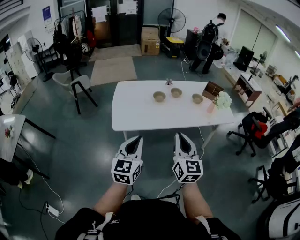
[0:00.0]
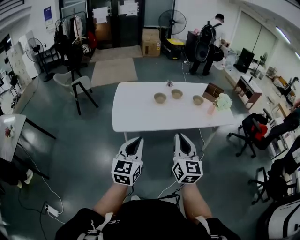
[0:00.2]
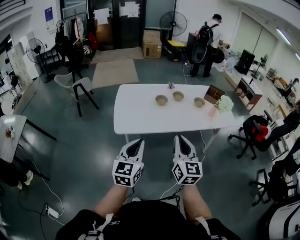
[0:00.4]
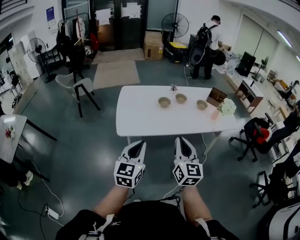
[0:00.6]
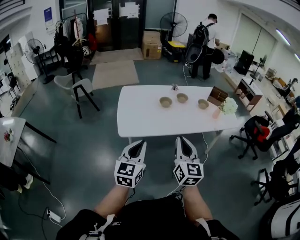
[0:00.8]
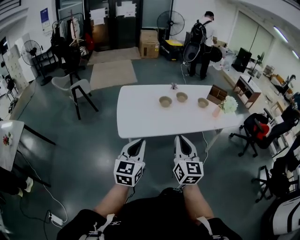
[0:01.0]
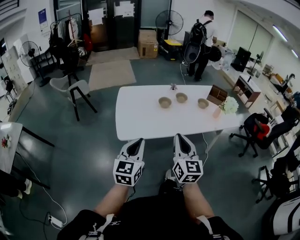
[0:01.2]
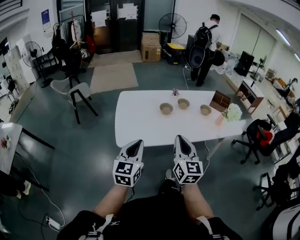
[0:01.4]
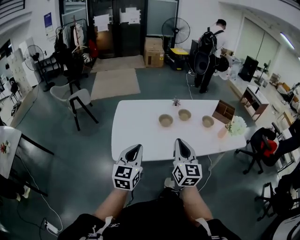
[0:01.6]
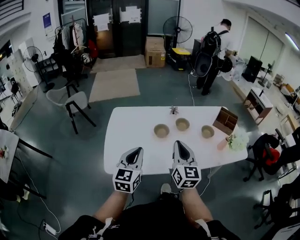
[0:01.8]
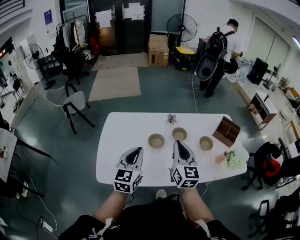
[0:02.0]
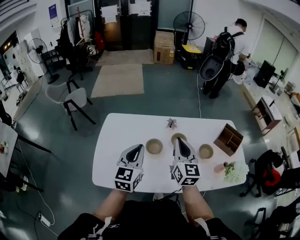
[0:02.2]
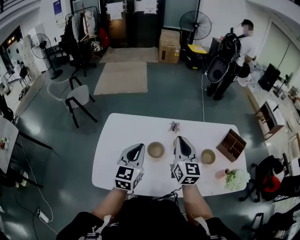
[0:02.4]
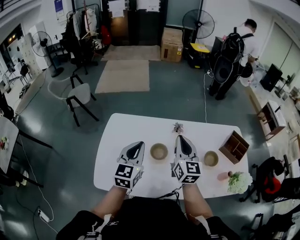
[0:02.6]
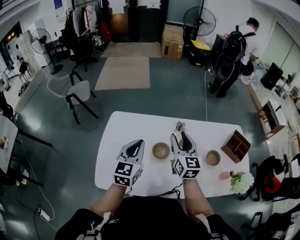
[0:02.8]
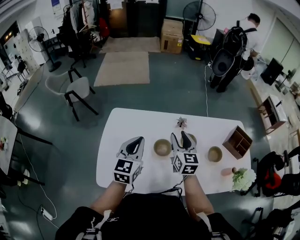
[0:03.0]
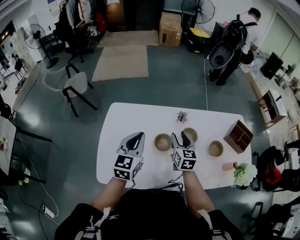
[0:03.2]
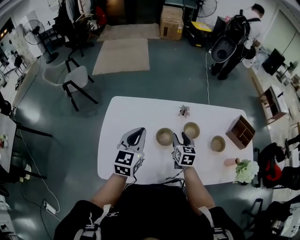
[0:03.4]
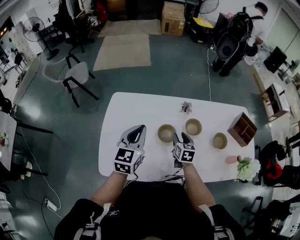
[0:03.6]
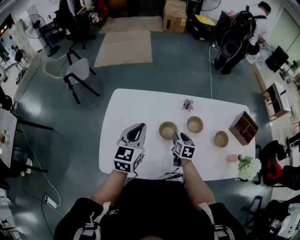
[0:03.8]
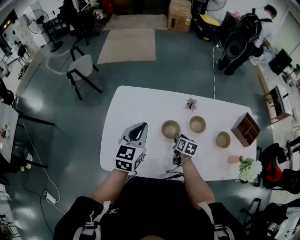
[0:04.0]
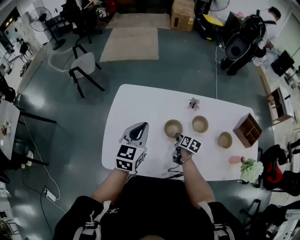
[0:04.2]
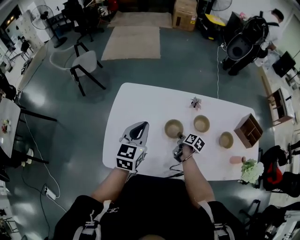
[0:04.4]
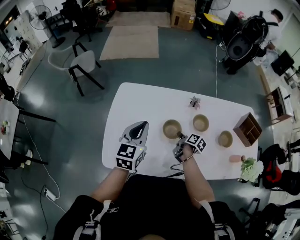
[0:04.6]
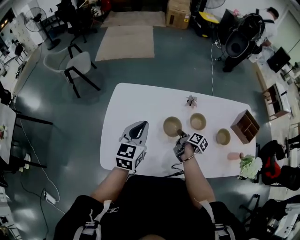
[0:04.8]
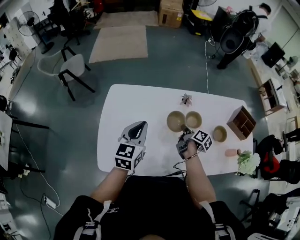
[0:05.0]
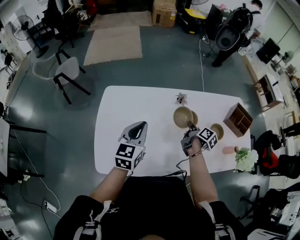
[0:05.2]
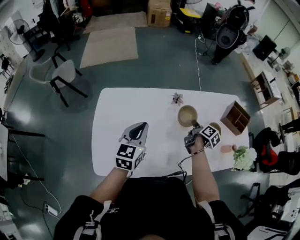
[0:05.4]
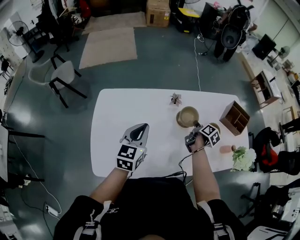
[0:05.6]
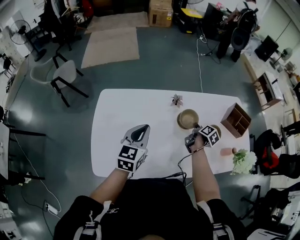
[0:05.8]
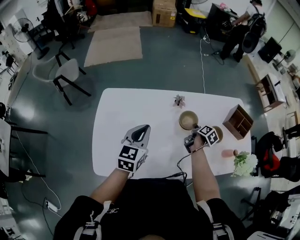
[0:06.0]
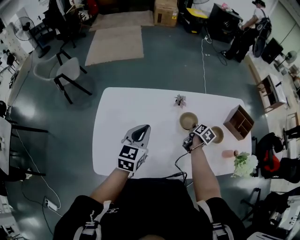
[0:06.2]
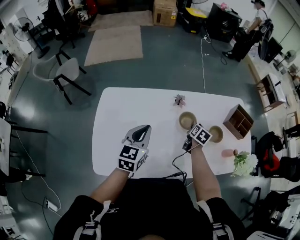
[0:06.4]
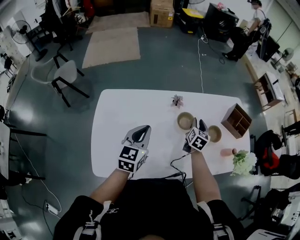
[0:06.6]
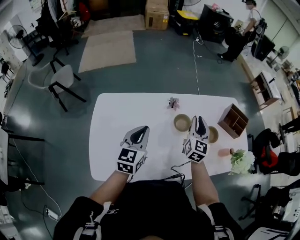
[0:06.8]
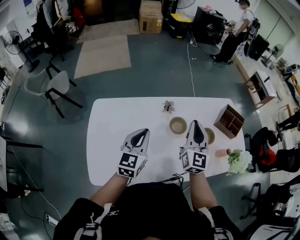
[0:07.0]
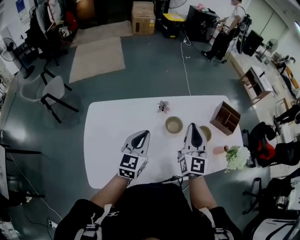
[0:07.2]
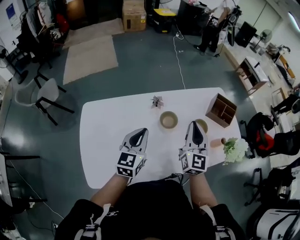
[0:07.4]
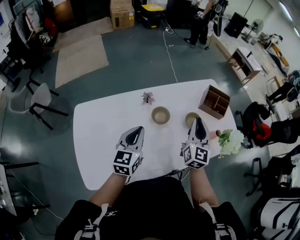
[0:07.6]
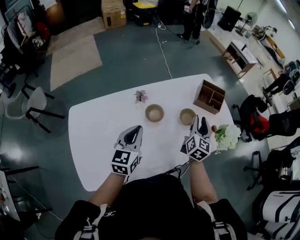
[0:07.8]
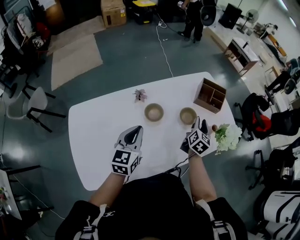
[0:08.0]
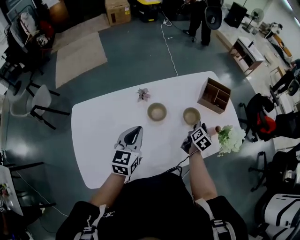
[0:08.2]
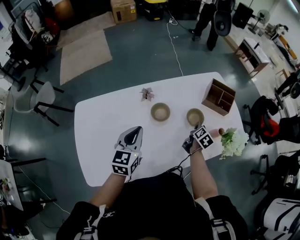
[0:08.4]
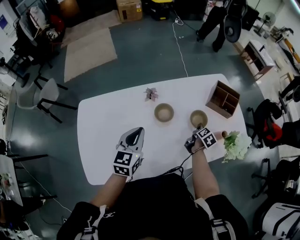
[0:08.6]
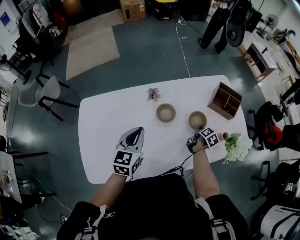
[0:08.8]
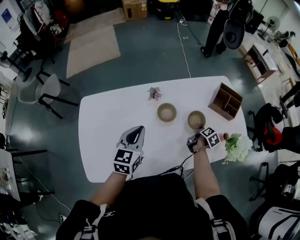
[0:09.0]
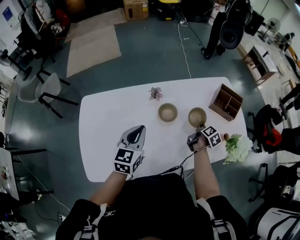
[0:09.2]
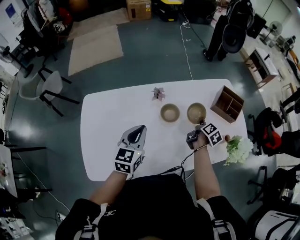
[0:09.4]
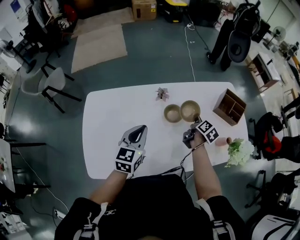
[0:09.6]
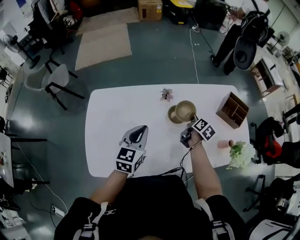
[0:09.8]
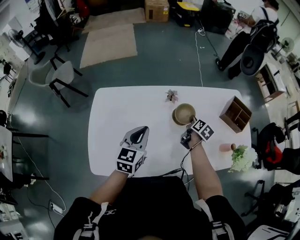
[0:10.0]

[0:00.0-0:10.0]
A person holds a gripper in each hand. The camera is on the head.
0:00.0 to 0:01.4: The two grippers go approximately 15 cm forward and to the left.
0:01.4 to 0:02.8: Both grippers are carried forward, some 50 cm. The right gripper opens up.
0:02.8 to 0:04.2: The right gripper shifts approximately 30 cm downward, and tips its fingers downward by roughly 40 degrees, while the left gripper heads downward, covering approximately 5 cm.
0:04.2 to 0:05.8: The left gripper is displaced to the right by roughly 10 cm. Meanwhile the right gripper goes about 20 cm to the right, and turns by roughly 40 degrees.
0:05.8 to 0:07.2: The right gripper travels upward by about 25 cm, tips its fingers upward by about 40 degrees, and opens, then closes again. Meanwhile the left gripper ends up roughly 5 cm from where it was.
0:07.2 to 0:08.6: The left gripper travels to the right by some 5 cm. Meanwhile the right gripper heads downward and to the right, covering roughly 40 cm, tilts its fingers about 50 degrees downward, and opens up.
0:08.6 to 0:10.0: The left gripper moves to the left, some 5 cm. Meanwhile the right gripper moves to the left, roughly 20 cm, changes its angle by about 30 degrees, and closes up.

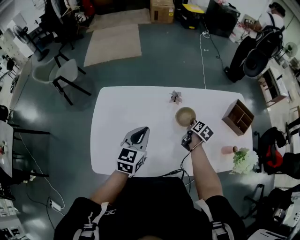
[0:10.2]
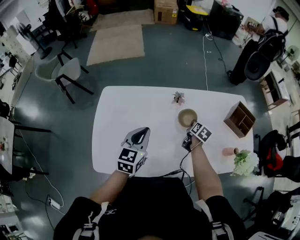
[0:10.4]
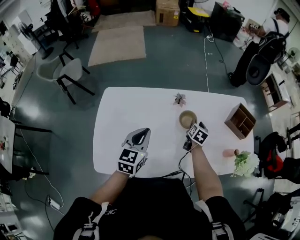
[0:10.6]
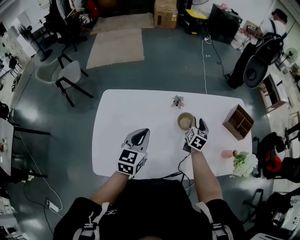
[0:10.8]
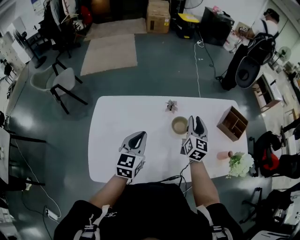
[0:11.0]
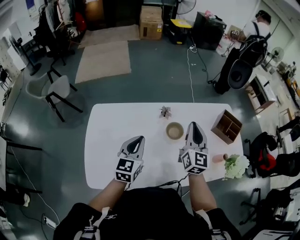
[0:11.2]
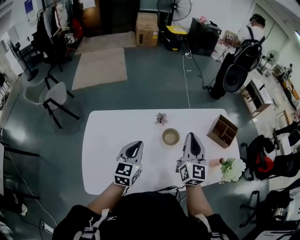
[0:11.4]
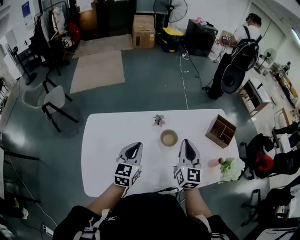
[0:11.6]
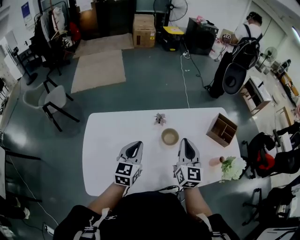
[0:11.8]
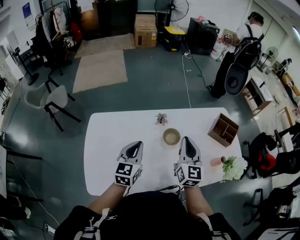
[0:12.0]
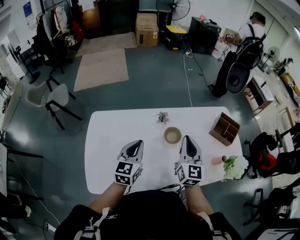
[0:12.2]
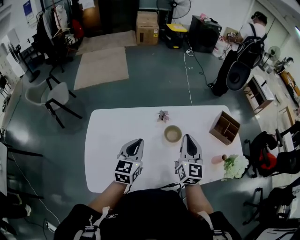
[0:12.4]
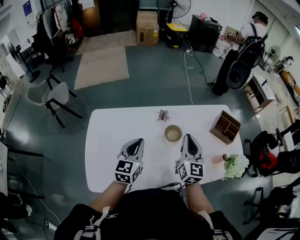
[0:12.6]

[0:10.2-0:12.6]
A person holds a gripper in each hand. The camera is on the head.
0:10.2 to 0:11.4: The right gripper moves upward, some 30 cm, tips its fingers upward by roughly 40 degrees, and opens and closes again.
0:11.4 to 0:12.6: The grippers move only a little.

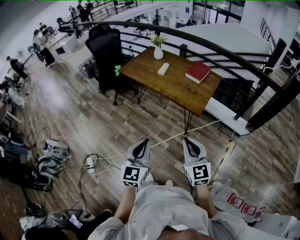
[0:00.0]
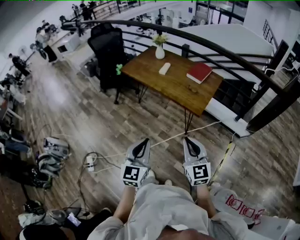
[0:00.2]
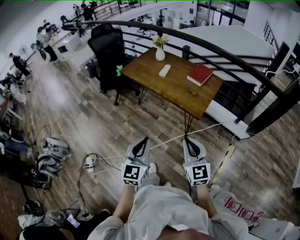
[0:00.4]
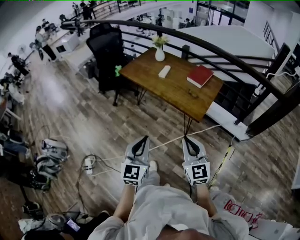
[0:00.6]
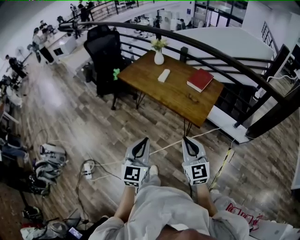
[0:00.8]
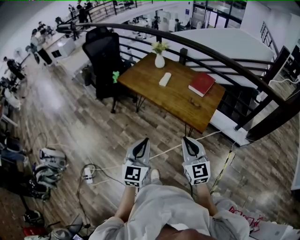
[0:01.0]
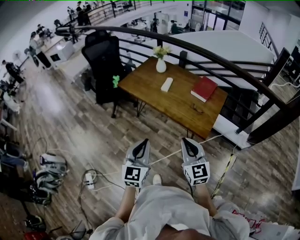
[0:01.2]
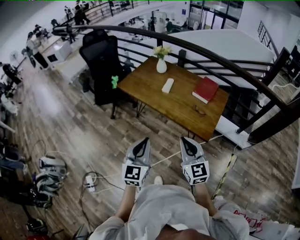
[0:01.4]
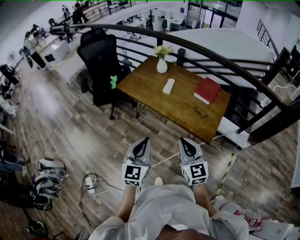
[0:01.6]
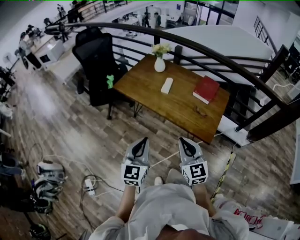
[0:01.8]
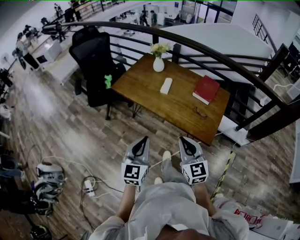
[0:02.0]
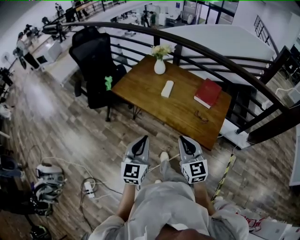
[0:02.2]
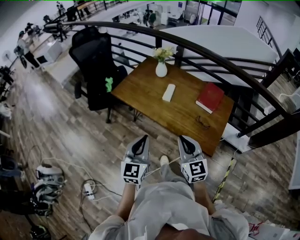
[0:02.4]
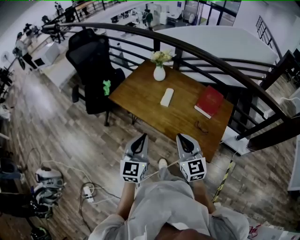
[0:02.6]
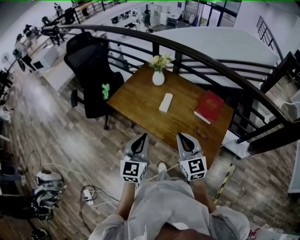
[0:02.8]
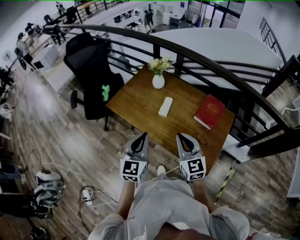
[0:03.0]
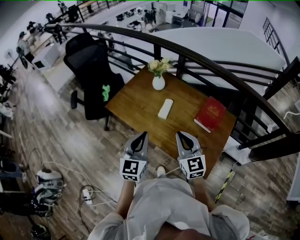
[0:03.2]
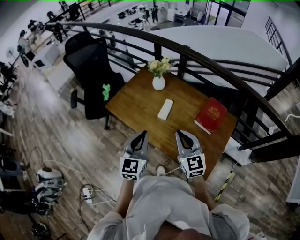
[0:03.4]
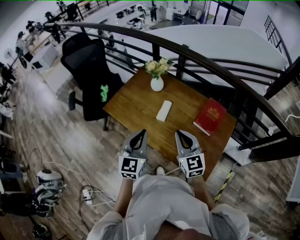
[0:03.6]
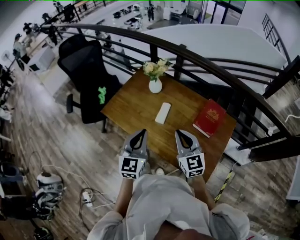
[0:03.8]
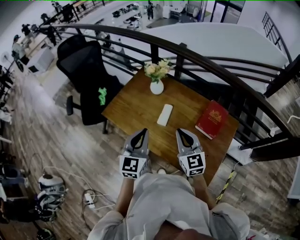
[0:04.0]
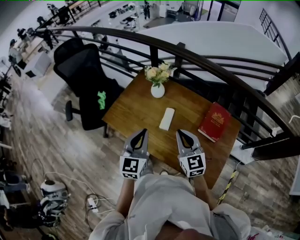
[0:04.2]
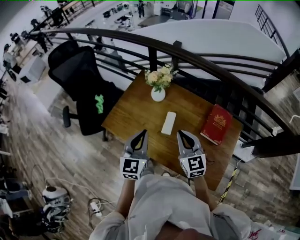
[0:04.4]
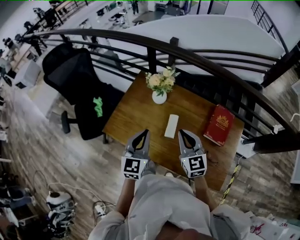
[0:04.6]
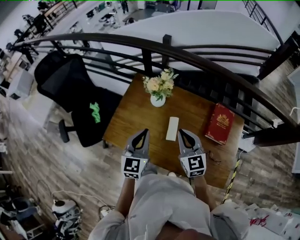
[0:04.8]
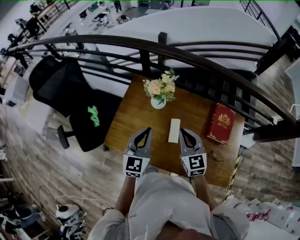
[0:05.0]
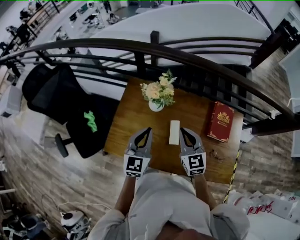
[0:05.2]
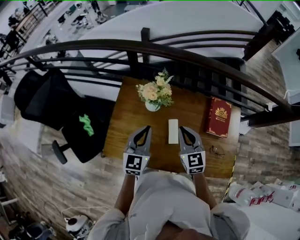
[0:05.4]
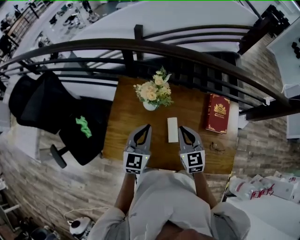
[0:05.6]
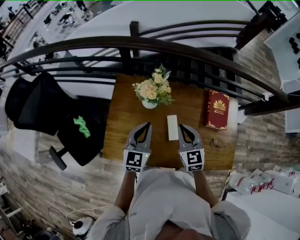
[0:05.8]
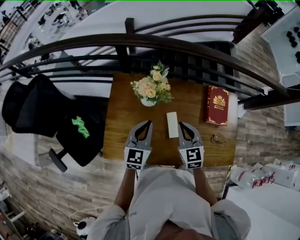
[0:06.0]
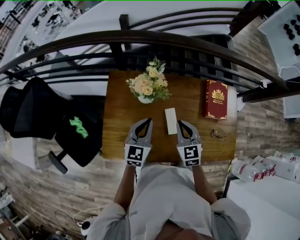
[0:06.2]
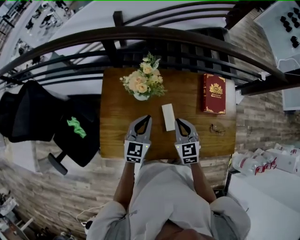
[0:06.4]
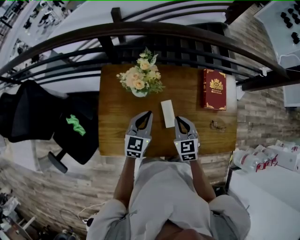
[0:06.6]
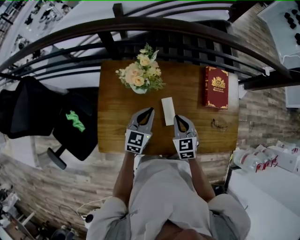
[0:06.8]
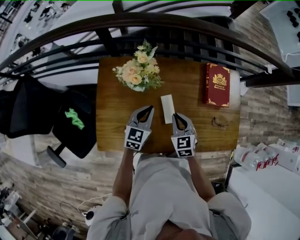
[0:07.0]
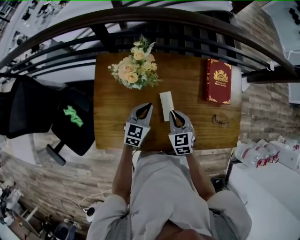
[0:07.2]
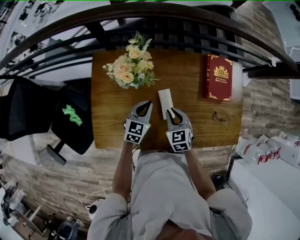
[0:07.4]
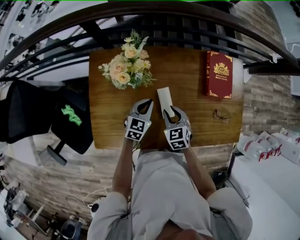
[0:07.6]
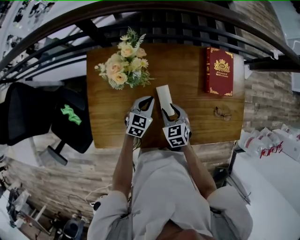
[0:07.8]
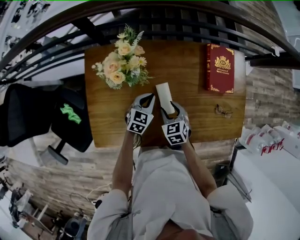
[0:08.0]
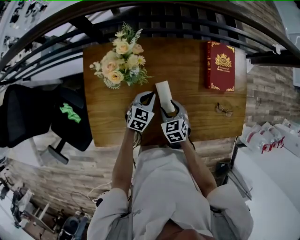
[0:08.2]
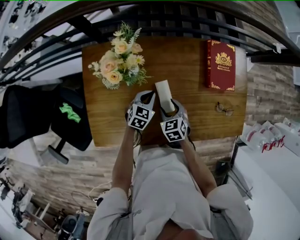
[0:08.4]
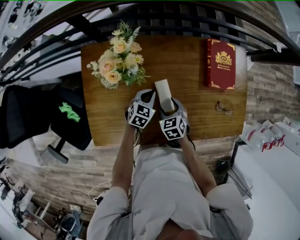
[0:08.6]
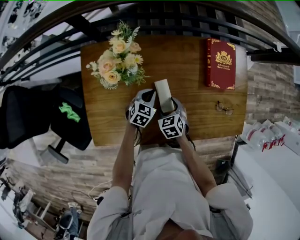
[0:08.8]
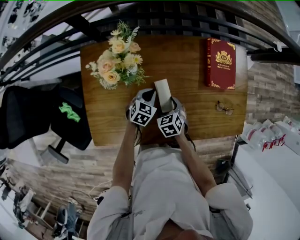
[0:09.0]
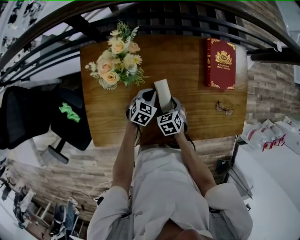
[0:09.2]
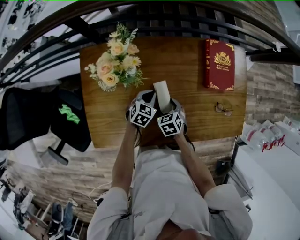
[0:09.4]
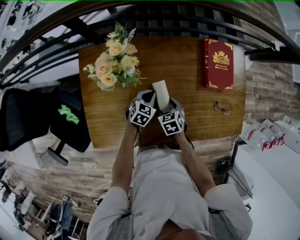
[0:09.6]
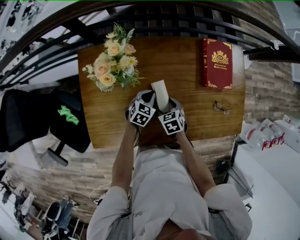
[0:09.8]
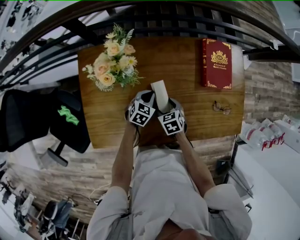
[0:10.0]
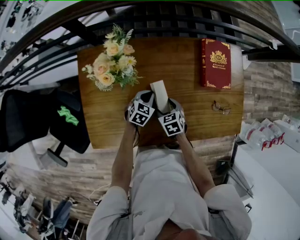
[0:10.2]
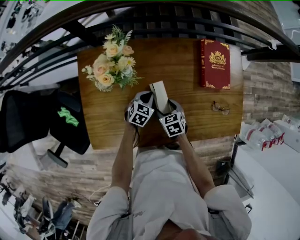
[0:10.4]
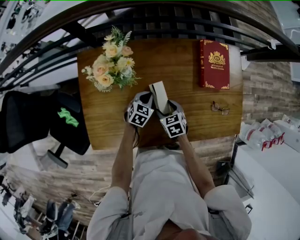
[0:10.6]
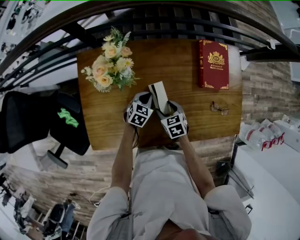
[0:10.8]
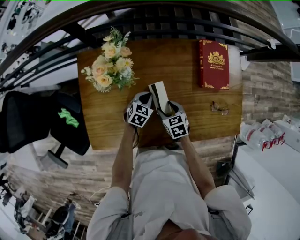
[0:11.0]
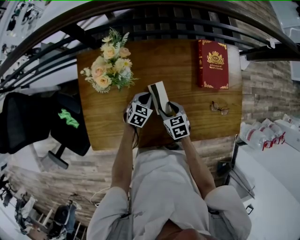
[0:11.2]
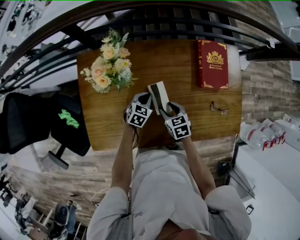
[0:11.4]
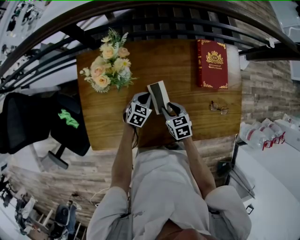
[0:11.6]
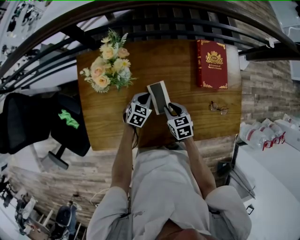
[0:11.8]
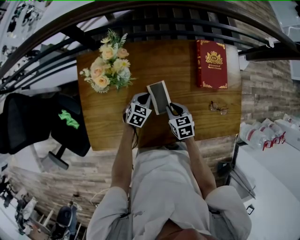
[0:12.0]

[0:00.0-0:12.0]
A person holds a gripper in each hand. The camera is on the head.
0:00.0 to 0:01.6: The grippers both shift forward by approximately 25 cm.
0:01.6 to 0:03.0: The grippers both shift forward by some 30 cm.
0:03.0 to 0:04.4: The grippers both shift forward by about 20 cm.
0:04.4 to 0:06.0: The left gripper changes place by approximately 20 cm, and swivels approximately 30 degrees, while the right gripper shifts by approximately 15 cm, and swivels about 30 degrees.
0:06.0 to 0:07.6: The right gripper travels downward by some 15 cm; the left gripper travels downward and to the right by about 20 cm, and swivels about 30 degrees.
0:07.6 to 0:09.0: Both grippers travel together downward, some 10 cm. The right gripper opens its fingers.
0:09.0 to 0:10.4: There are only small adjustments of the grippers.
0:10.4 to 0:12.0: The right gripper moves some 5 cm, and closes its fingers.
